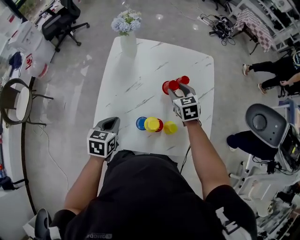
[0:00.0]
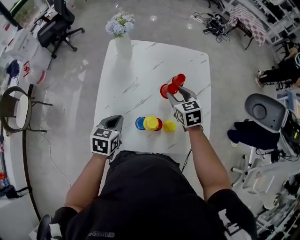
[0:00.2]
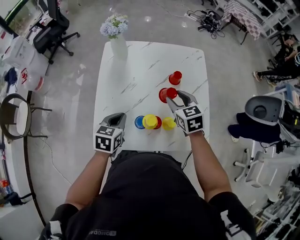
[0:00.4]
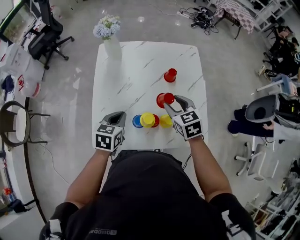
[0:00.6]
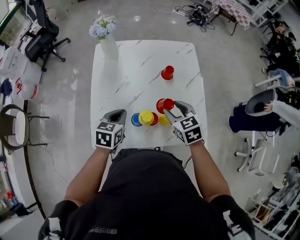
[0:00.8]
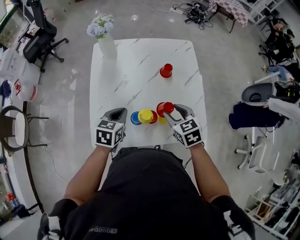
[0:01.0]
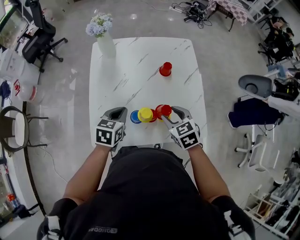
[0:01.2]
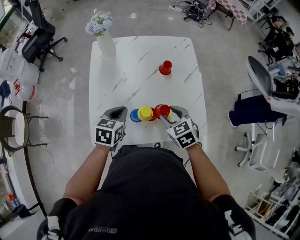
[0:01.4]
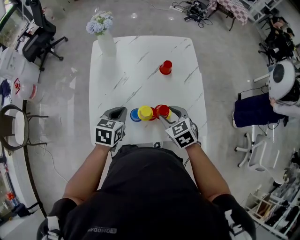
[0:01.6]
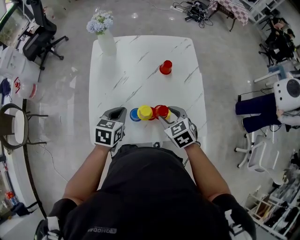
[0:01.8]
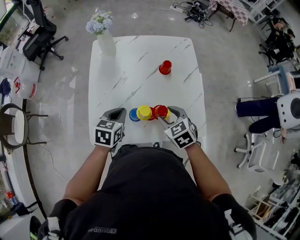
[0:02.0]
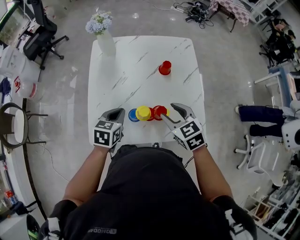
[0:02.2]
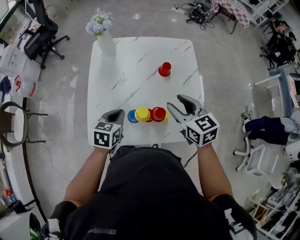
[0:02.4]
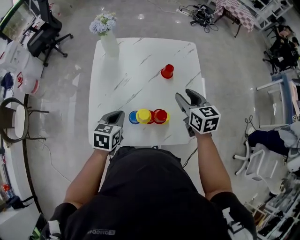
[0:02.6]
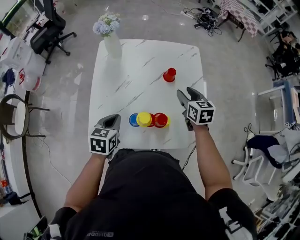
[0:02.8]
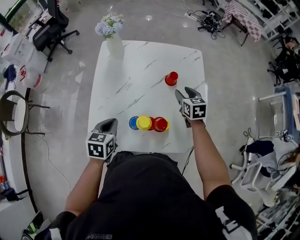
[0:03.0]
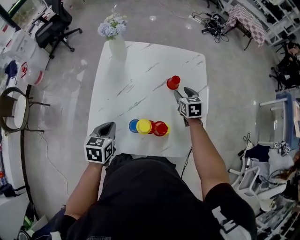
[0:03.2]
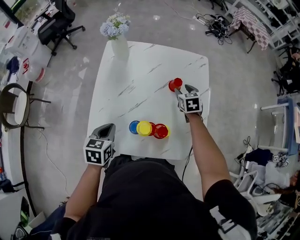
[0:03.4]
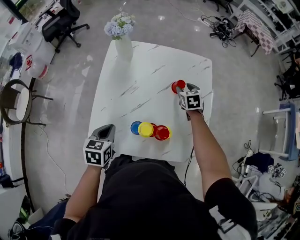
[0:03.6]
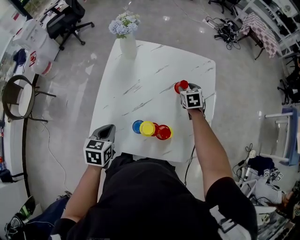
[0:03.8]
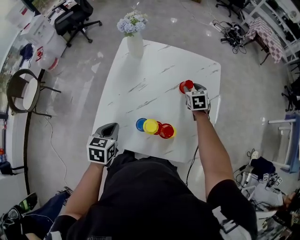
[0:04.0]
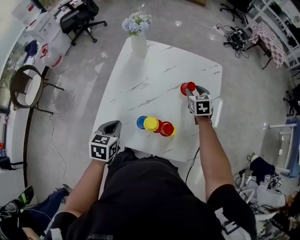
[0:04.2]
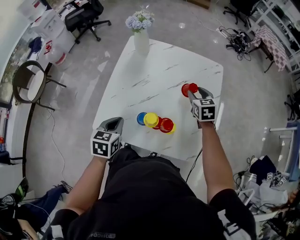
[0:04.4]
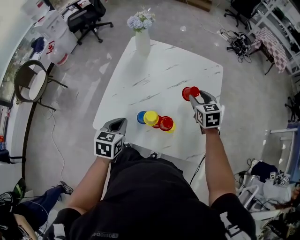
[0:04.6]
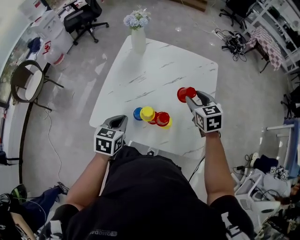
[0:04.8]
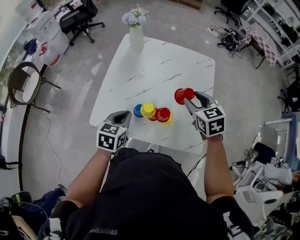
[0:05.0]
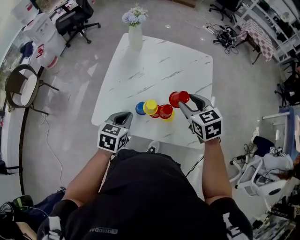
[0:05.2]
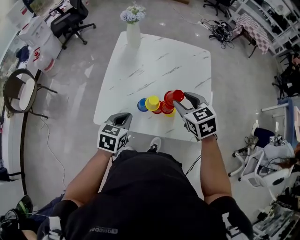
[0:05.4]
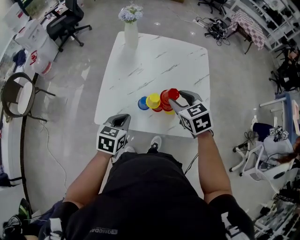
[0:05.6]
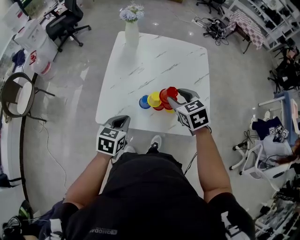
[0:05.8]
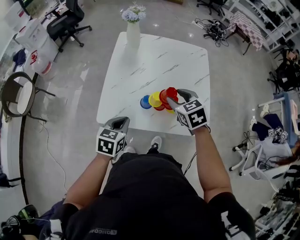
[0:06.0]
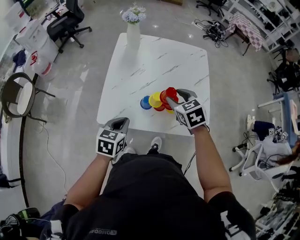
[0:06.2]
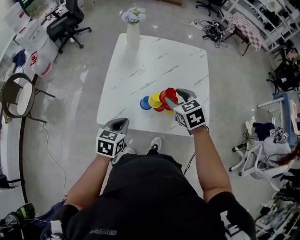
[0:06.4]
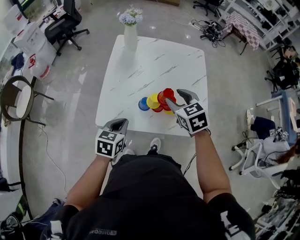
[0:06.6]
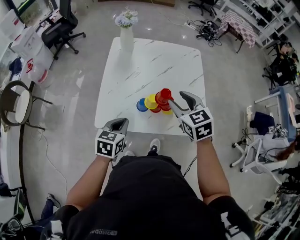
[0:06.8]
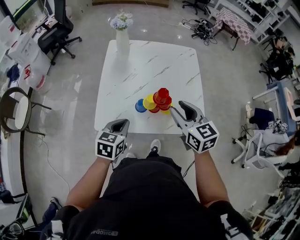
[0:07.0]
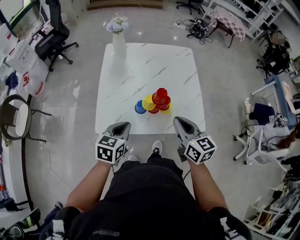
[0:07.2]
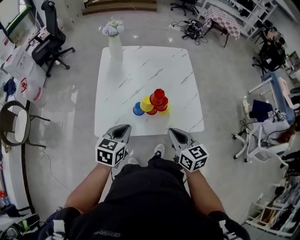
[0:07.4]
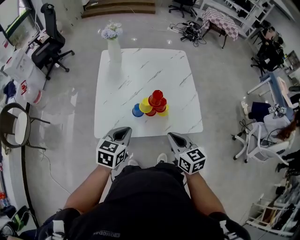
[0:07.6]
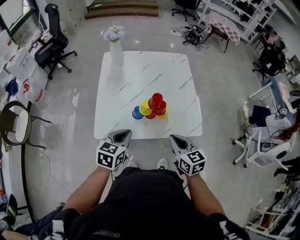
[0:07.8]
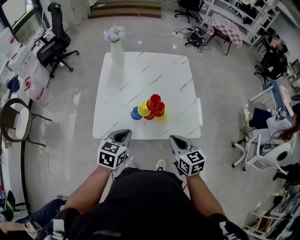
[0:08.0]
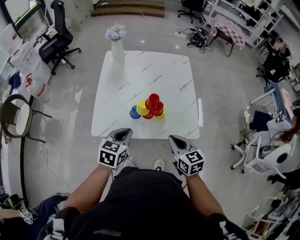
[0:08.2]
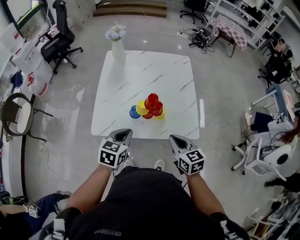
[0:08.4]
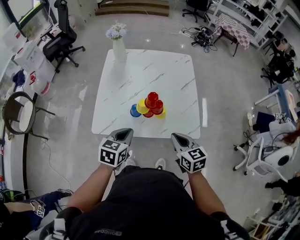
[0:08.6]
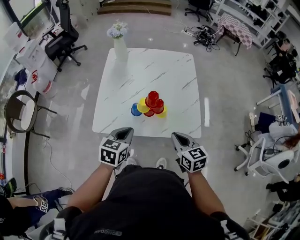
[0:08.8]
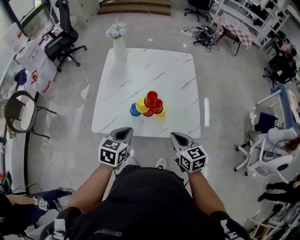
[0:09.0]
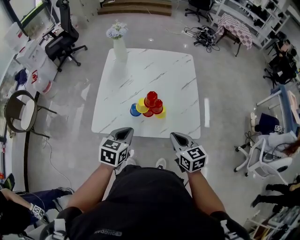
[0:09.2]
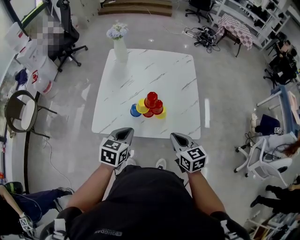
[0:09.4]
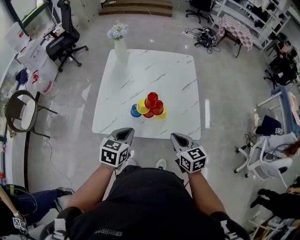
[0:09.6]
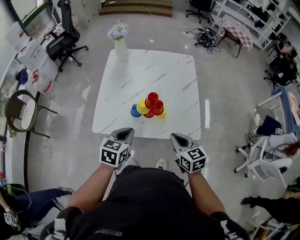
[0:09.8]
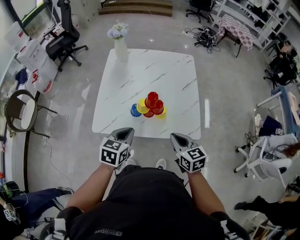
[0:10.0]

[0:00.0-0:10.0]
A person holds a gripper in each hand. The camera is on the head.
0:00.0 to 0:01.4: The left gripper shifts approximately 5 cm to the right; the right gripper goes approximately 20 cm backward.
0:01.4 to 0:02.8: The right gripper shifts approximately 15 cm forward and to the right, and changes its angle by roughly 20 degrees.
0:02.8 to 0:04.2: The right gripper is displaced forward and downward by approximately 10 cm, and rotates some 20 degrees.
0:04.2 to 0:05.8: The left gripper heads backward, covering approximately 10 cm. Meanwhile the right gripper moves backward, to the left and upward, roughly 30 cm.
0:05.8 to 0:07.2: The right gripper is displaced backward by about 10 cm, swivels some 40 degrees, and closes up.
0:07.2 to 0:08.6: The right gripper shifts approximately 10 cm downward and to the right. Meanwhile the left gripper is displaced to the right by roughly 5 cm.
0:08.6 to 0:10.0: The two grippers keep their place.

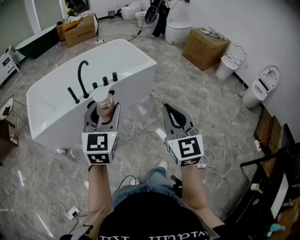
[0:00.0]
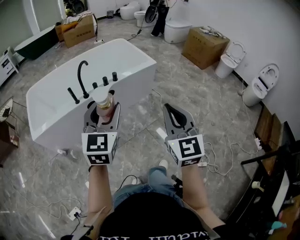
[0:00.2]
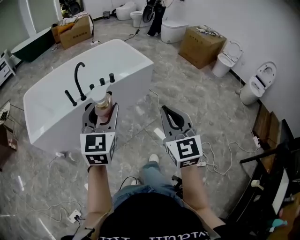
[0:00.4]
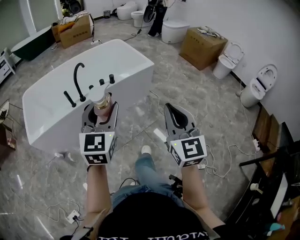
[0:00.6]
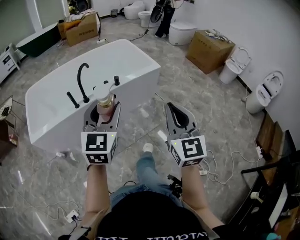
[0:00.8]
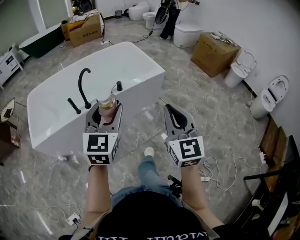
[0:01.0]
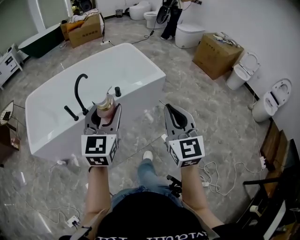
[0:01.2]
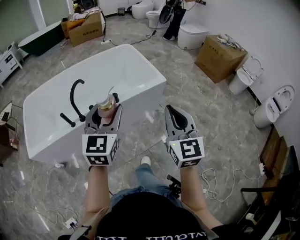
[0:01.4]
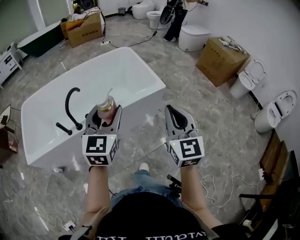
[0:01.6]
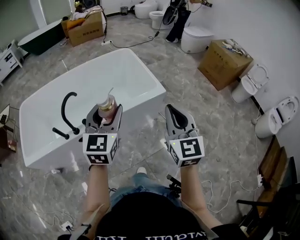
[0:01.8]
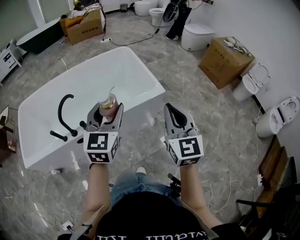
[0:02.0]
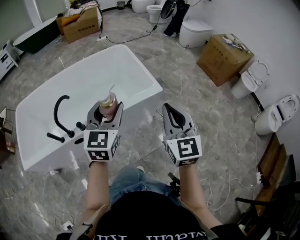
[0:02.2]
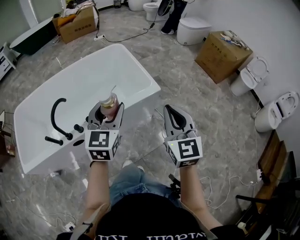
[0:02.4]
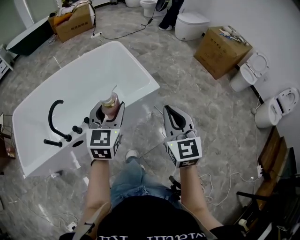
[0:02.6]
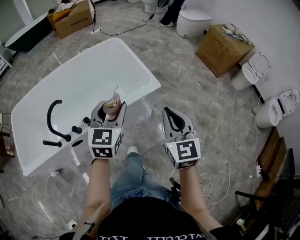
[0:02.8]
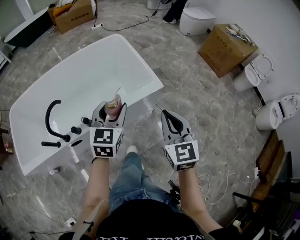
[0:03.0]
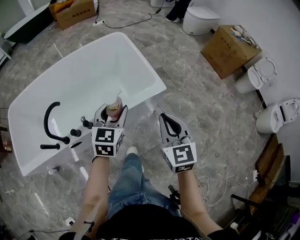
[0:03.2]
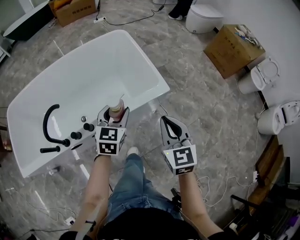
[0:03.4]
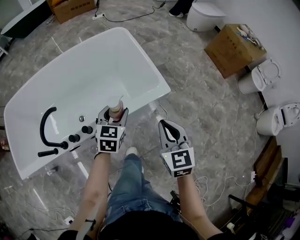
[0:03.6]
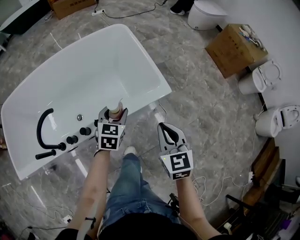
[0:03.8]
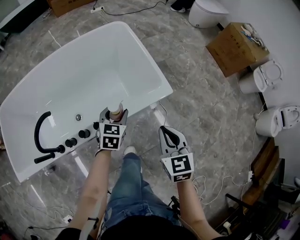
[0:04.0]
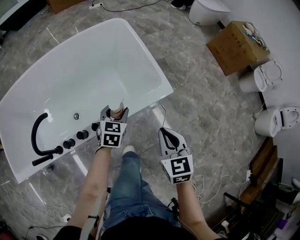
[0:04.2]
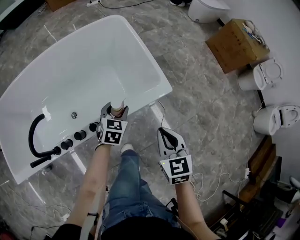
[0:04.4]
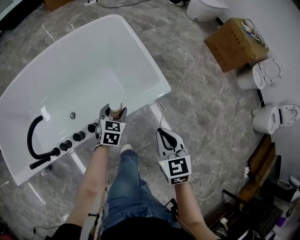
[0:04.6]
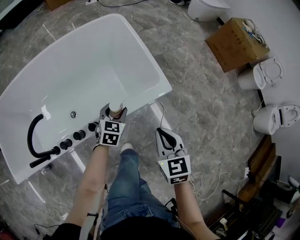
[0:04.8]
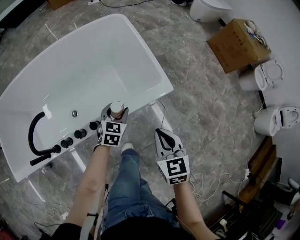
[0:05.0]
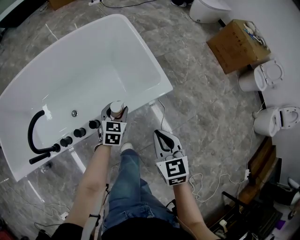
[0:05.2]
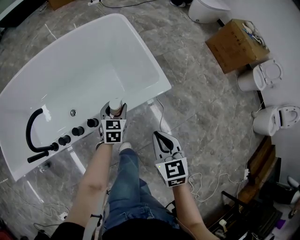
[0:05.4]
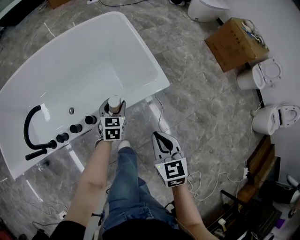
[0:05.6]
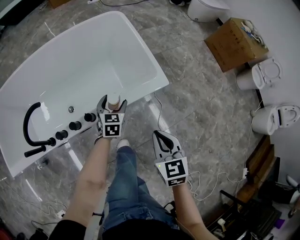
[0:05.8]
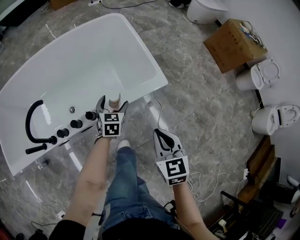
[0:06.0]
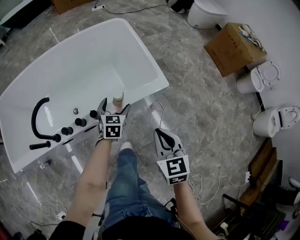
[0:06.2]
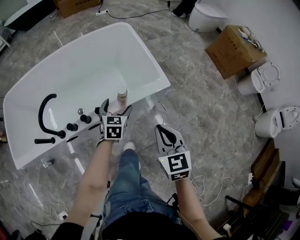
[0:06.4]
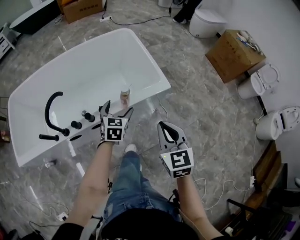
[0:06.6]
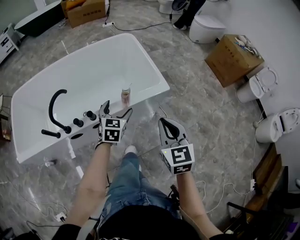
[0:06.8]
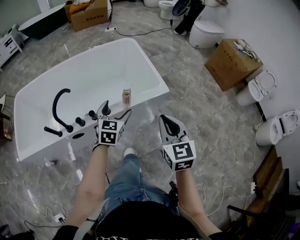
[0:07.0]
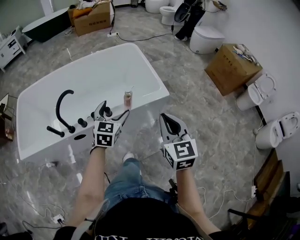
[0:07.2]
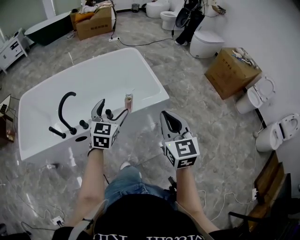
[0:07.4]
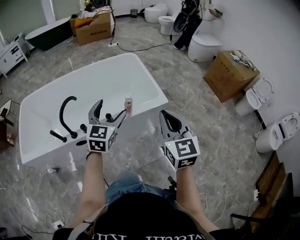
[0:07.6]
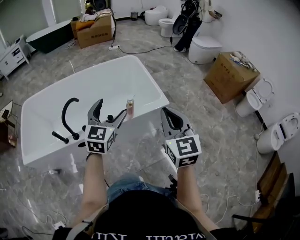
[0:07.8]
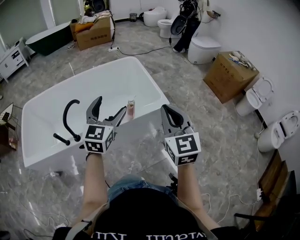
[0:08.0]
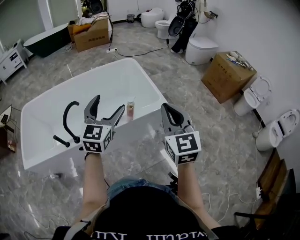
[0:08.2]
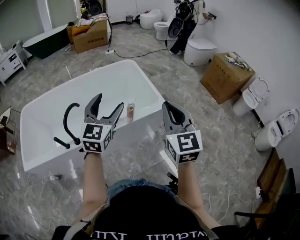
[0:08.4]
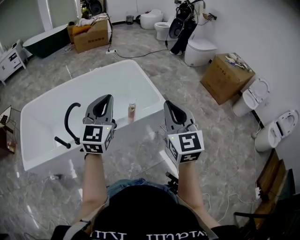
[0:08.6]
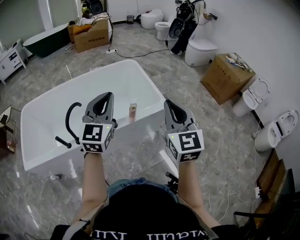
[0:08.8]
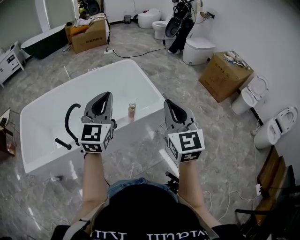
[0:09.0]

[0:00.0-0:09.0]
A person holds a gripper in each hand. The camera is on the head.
0:00.0 to 0:01.6: The two grippers go some 40 cm forward.
0:01.6 to 0:03.0: The grippers both shift forward and downward by roughly 25 cm.
0:03.0 to 0:04.4: The right gripper travels downward and forward by approximately 20 cm. Meanwhile the left gripper shifts some 30 cm downward and forward, and turns by roughly 20 degrees.
0:04.4 to 0:06.0: The right gripper moves backward, some 5 cm. Meanwhile the left gripper opens up.
0:06.0 to 0:07.6: The two grippers go about 30 cm upward and backward. The right gripper rotates roughly 20 degrees. The left gripper swivels some 30 degrees.
0:07.6 to 0:09.0: The right gripper travels upward by some 10 cm; the left gripper goes some 15 cm upward, and closes its fingers.

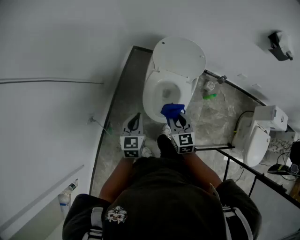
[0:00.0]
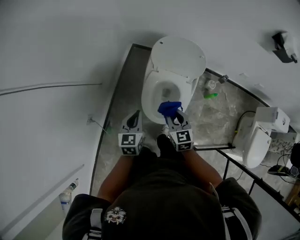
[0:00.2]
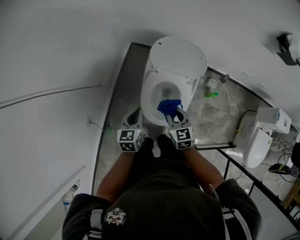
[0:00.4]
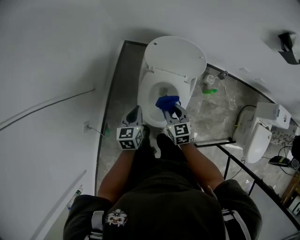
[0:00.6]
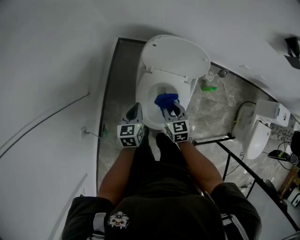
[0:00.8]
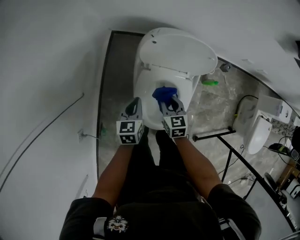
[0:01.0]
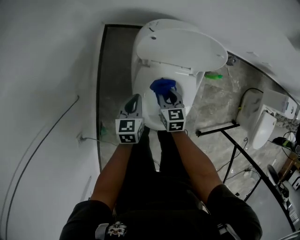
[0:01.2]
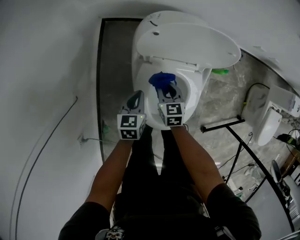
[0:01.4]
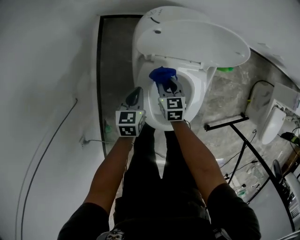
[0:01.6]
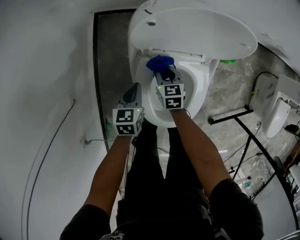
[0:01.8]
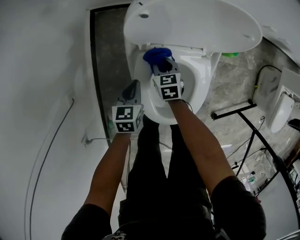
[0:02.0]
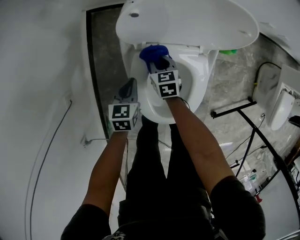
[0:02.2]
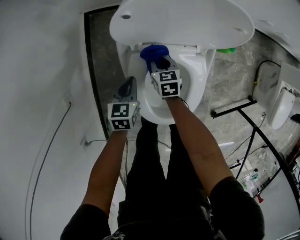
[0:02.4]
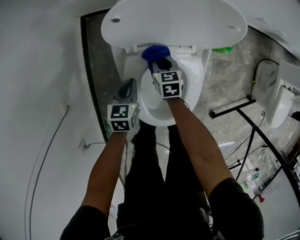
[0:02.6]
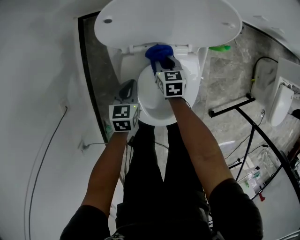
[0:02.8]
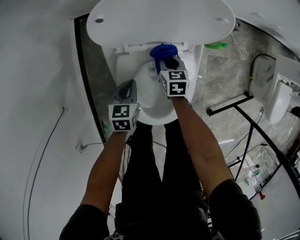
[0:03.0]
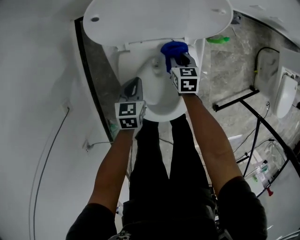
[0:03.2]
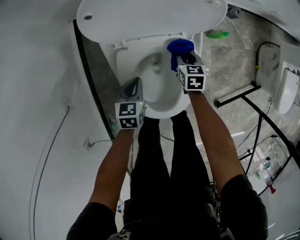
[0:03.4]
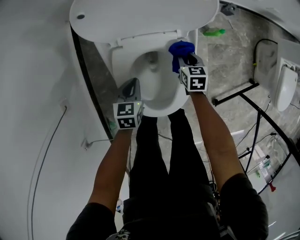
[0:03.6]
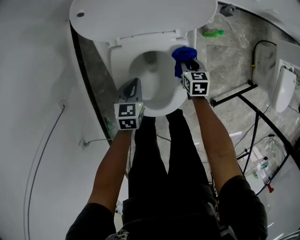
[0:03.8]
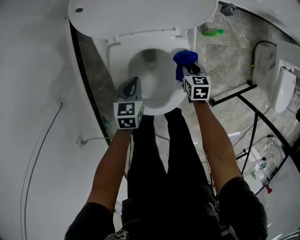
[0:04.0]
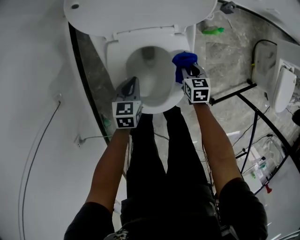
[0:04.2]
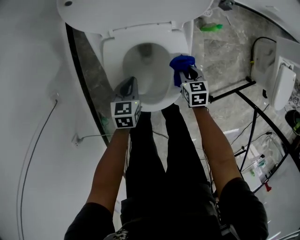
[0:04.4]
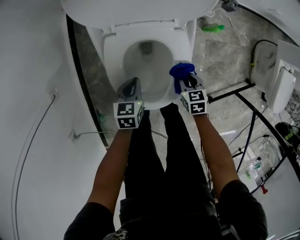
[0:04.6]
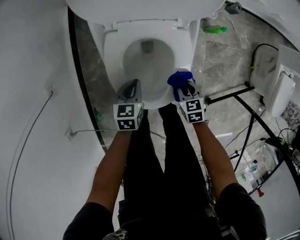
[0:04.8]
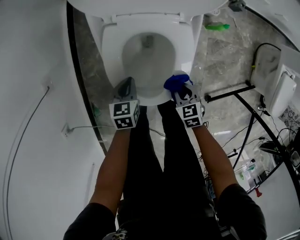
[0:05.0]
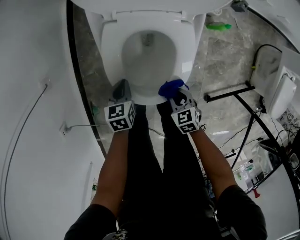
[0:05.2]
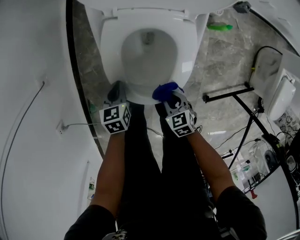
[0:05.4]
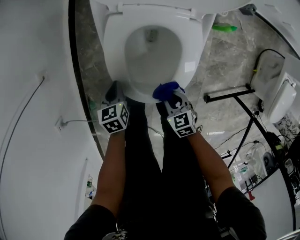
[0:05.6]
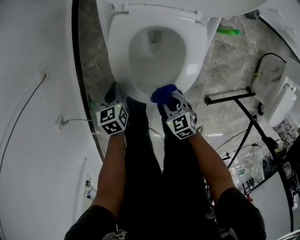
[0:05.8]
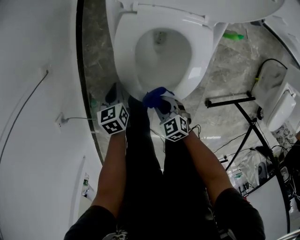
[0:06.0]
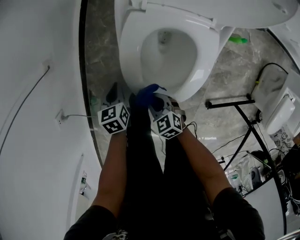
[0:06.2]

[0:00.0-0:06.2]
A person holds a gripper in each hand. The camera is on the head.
0:00.0 to 0:01.6: Both grippers move downward and forward, some 40 cm. The left gripper turns by approximately 30 degrees. Meanwhile the right gripper rotates roughly 30 degrees.
0:01.6 to 0:03.2: The left gripper travels to the right by about 10 cm, while the right gripper travels to the right and downward by some 15 cm.
0:03.2 to 0:04.6: The left gripper heads backward, covering about 10 cm. Meanwhile the right gripper heads backward and to the right, covering approximately 20 cm.
0:04.6 to 0:06.2: The right gripper changes place by some 25 cm, and swivels approximately 40 degrees. The left gripper moves about 20 cm, and swivels about 30 degrees.
